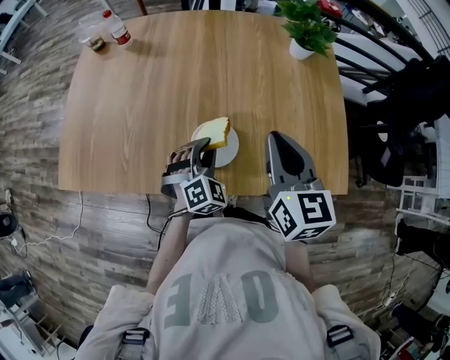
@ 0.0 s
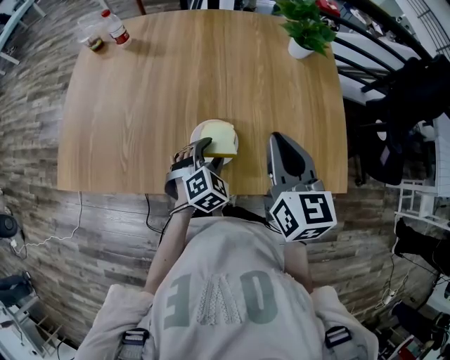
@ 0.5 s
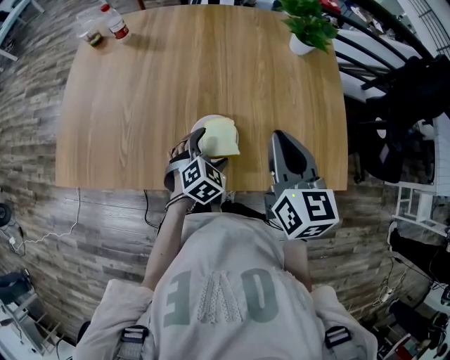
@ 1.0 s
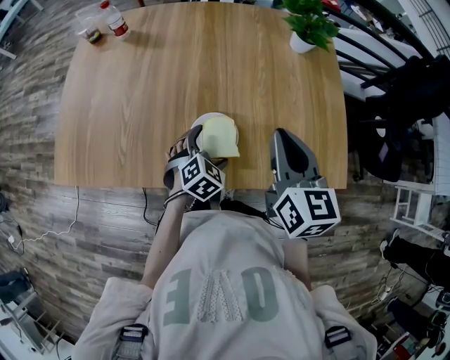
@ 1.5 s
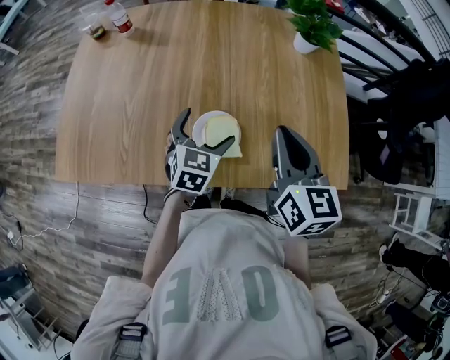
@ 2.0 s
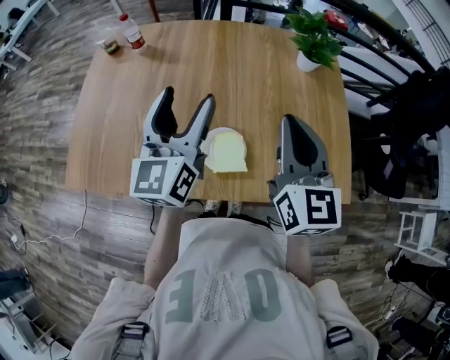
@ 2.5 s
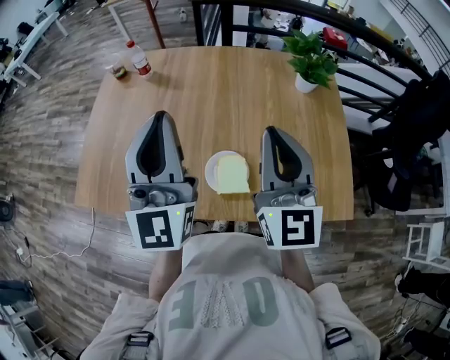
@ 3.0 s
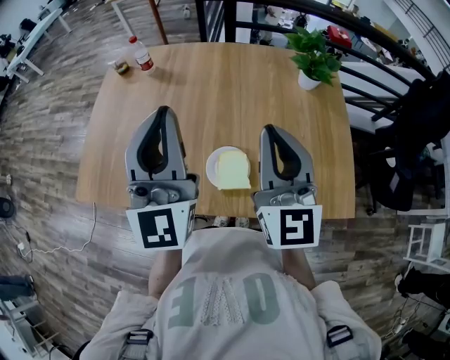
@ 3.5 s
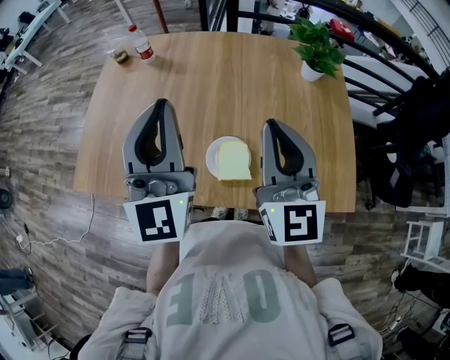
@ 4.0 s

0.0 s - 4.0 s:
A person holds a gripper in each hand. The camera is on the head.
0.0 s - 2.0 s: The left gripper swivels some 40 degrees, and opens up.
2.0 s - 4.0 s: The left gripper travels upward by approximately 30 cm, points its fingers about 50 degrees further upward, and closes up. Meanwhile the right gripper heads upward and to the left, covering approximately 10 cm, and changes its angle by some 30 degrees.

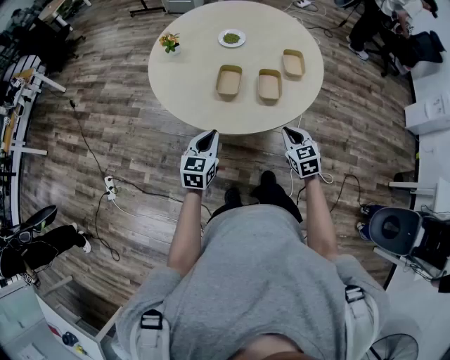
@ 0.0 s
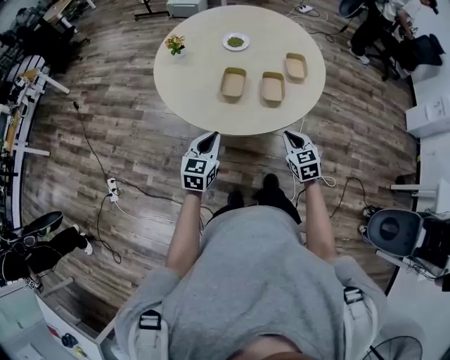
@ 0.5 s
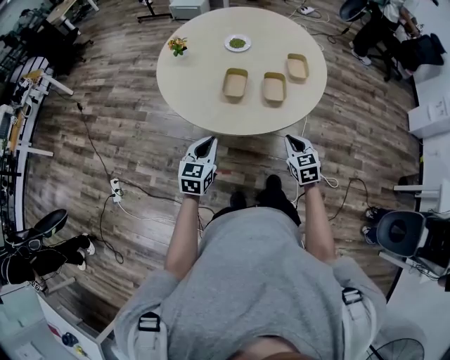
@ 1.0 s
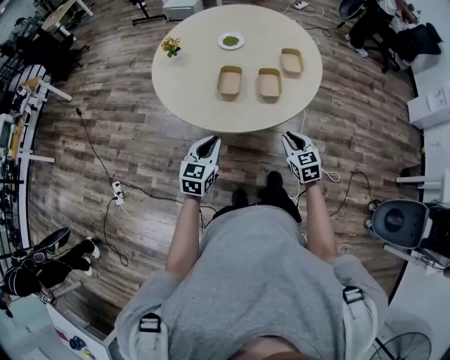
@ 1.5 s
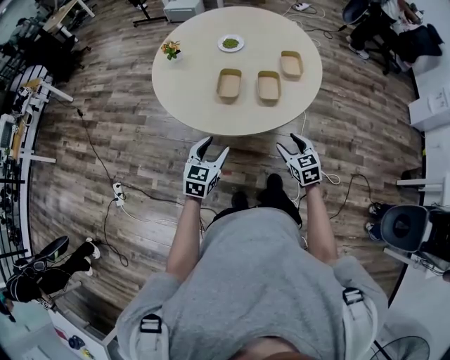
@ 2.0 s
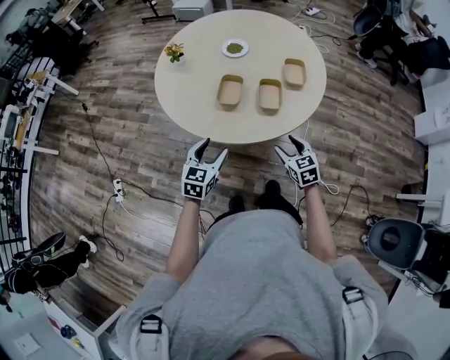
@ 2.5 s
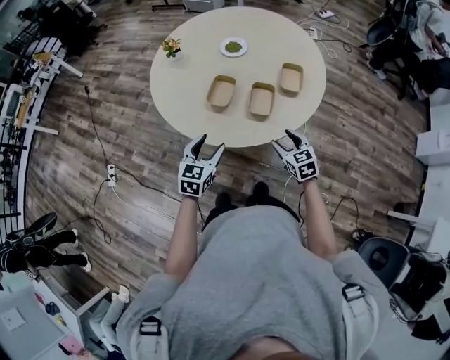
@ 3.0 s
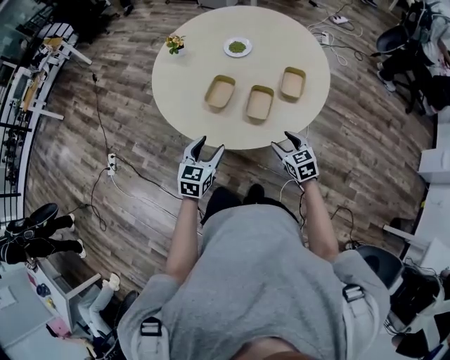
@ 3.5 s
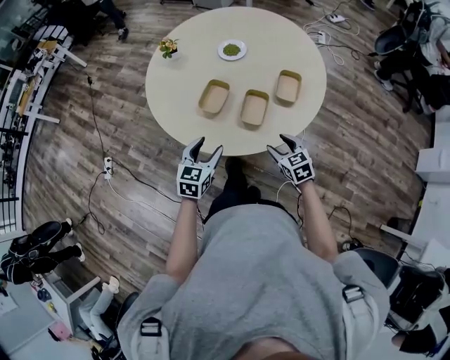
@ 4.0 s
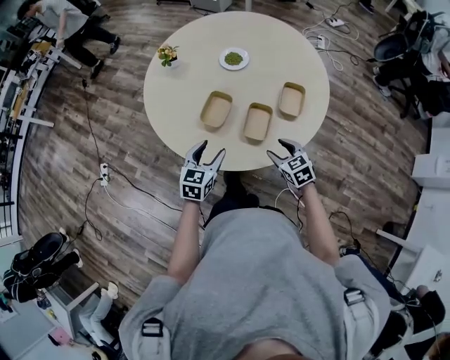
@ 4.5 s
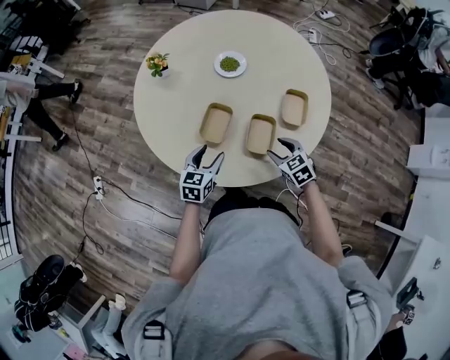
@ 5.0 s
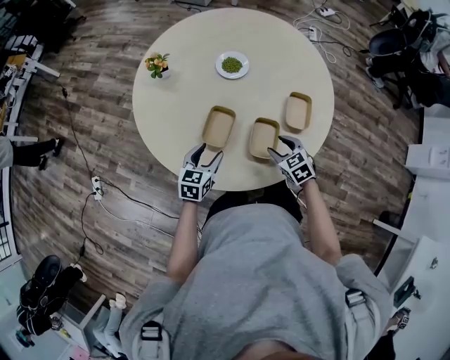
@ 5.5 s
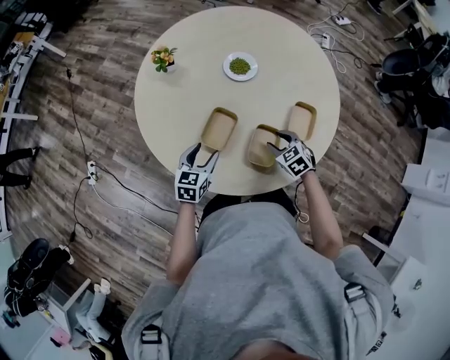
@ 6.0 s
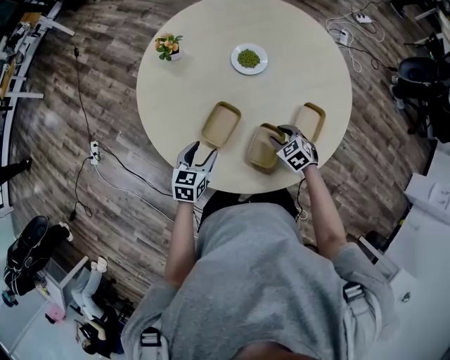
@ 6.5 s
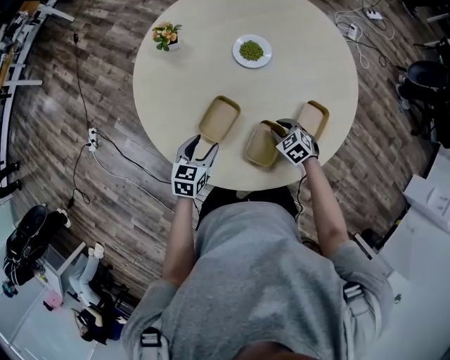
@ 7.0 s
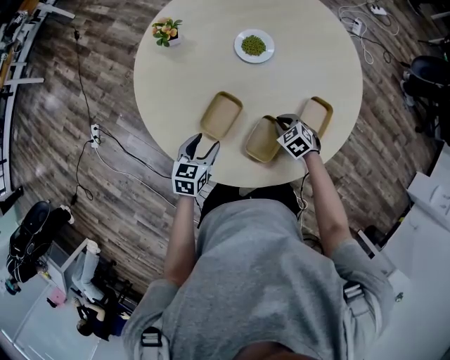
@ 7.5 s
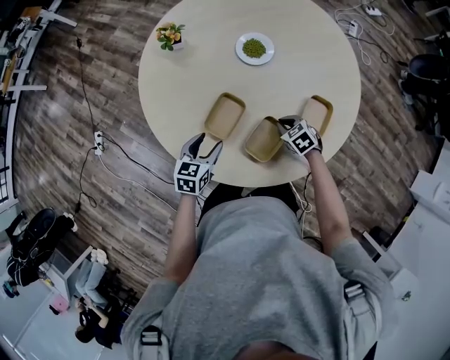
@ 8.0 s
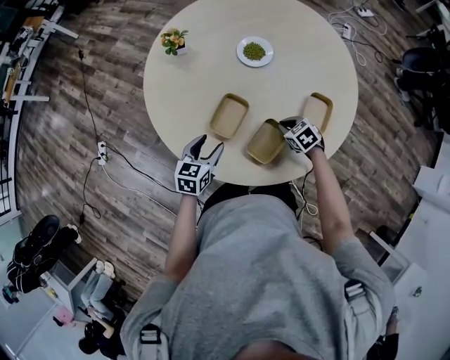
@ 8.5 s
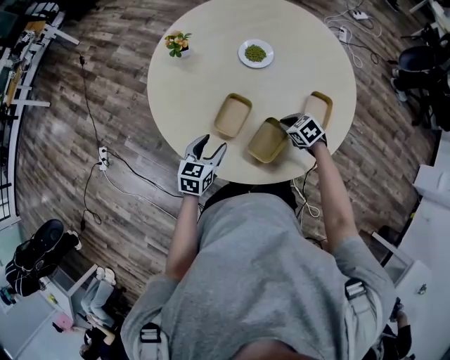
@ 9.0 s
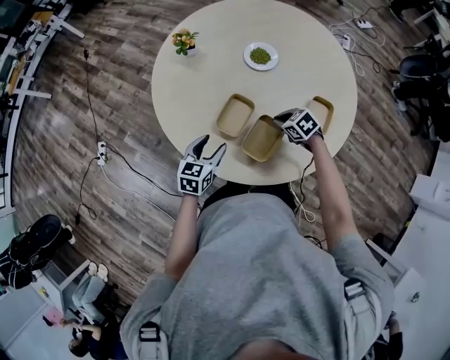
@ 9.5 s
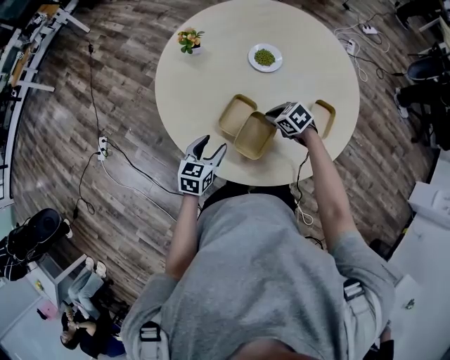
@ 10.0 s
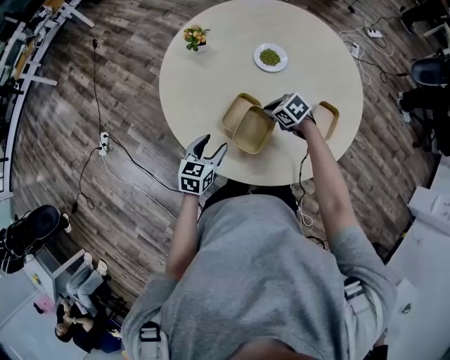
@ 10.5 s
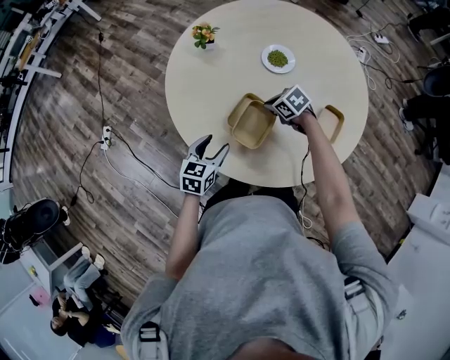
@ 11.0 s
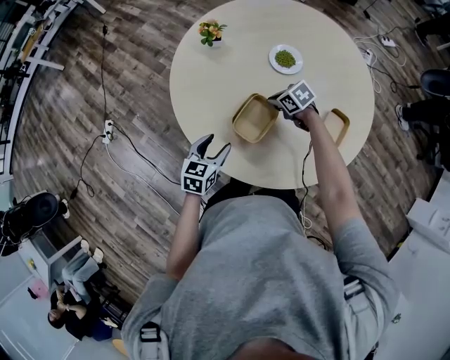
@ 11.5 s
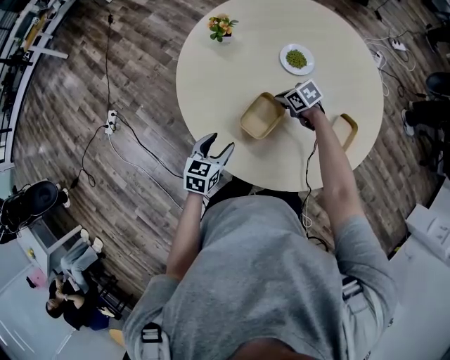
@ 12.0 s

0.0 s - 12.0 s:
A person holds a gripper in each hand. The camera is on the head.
0.0 s - 2.0 s: The left gripper shifts by roughly 5 cm, and opens up; the right gripper shifts about 5 cm backward, and opens.
2.0 s - 4.0 s: The right gripper goes about 20 cm forward and to the right, and swivels about 20 degrees. The left gripper shifts approximately 15 cm to the right and forward.
4.0 s - 6.0 s: The left gripper shifts roughly 25 cm forward and downward, while the right gripper heads forward, covering some 25 cm, and rotates roughly 20 degrees.
6.0 s - 8.0 s: The right gripper heads downward, covering about 5 cm, and closes up.
8.0 s - 10.0 s: The right gripper travels to the left and upward by about 10 cm. The left gripper ends up approximately 5 cm from where it was.
10.0 s - 12.0 s: The left gripper moves approximately 5 cm, while the right gripper is displaced forward by roughly 10 cm.

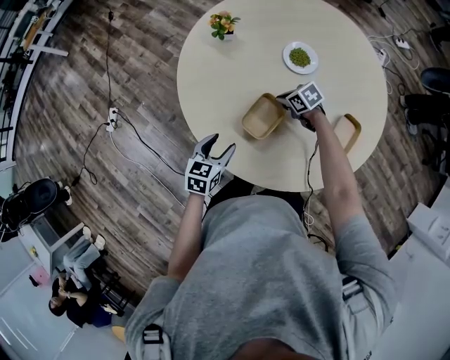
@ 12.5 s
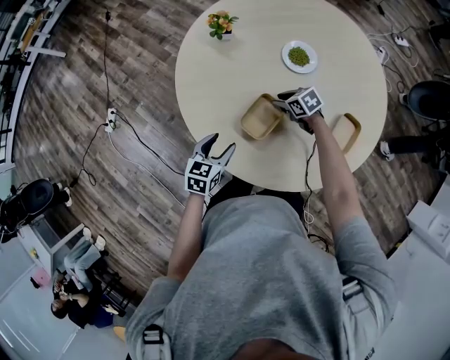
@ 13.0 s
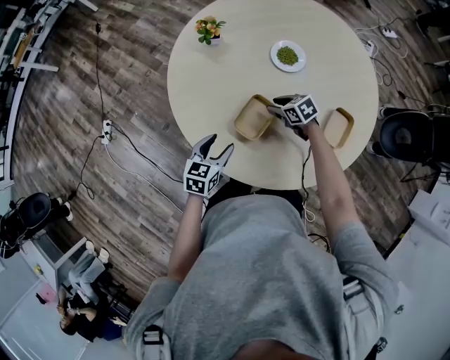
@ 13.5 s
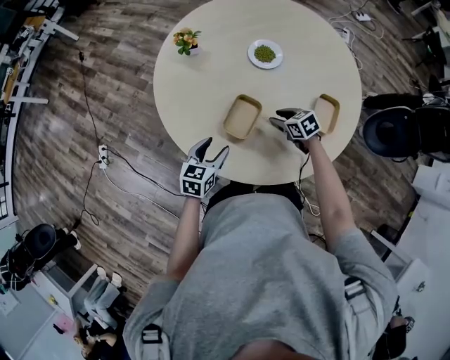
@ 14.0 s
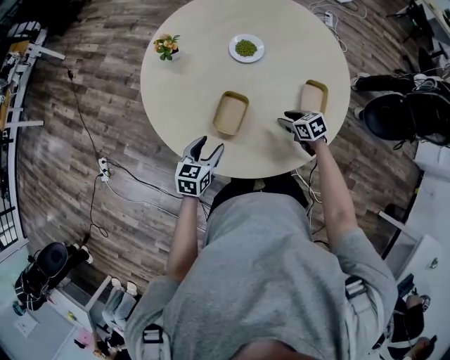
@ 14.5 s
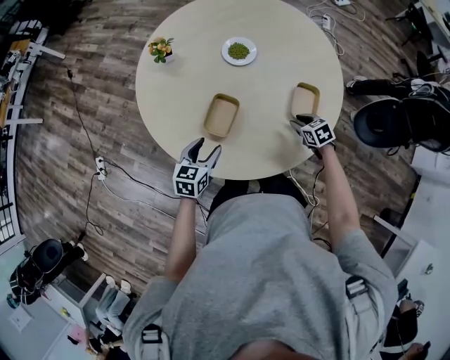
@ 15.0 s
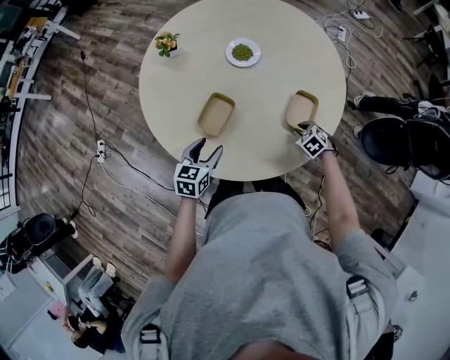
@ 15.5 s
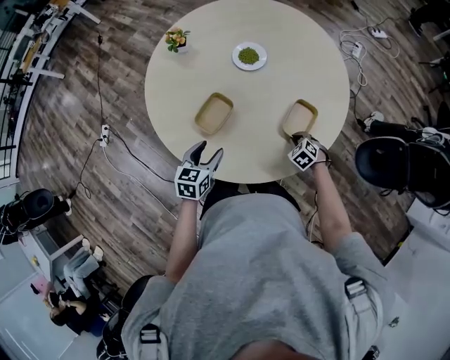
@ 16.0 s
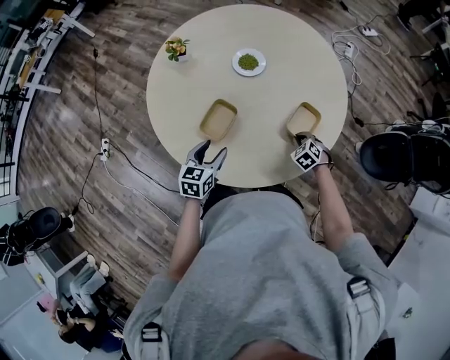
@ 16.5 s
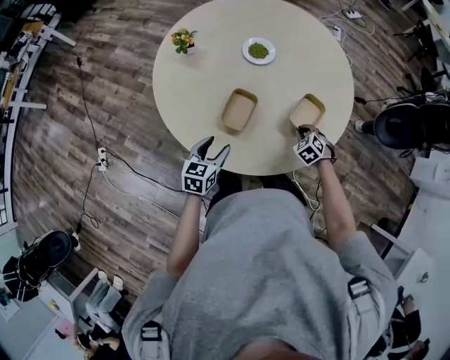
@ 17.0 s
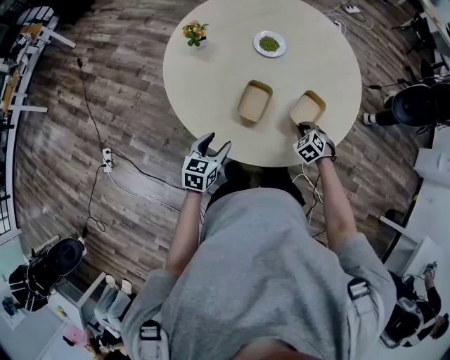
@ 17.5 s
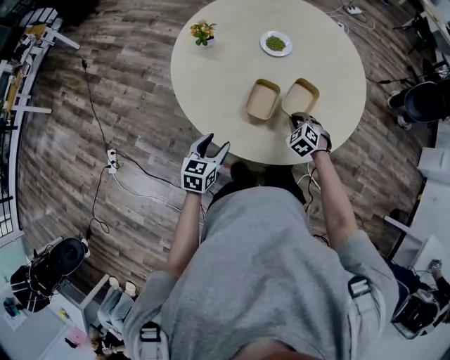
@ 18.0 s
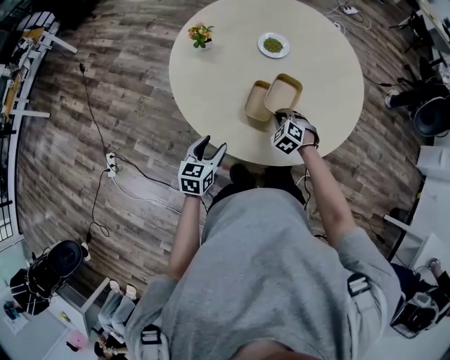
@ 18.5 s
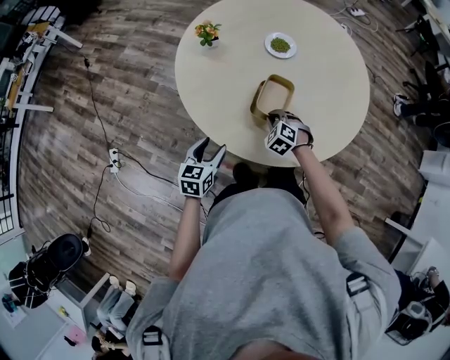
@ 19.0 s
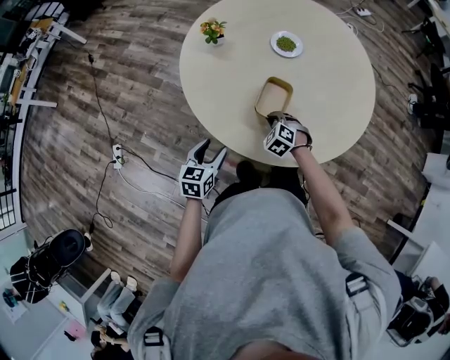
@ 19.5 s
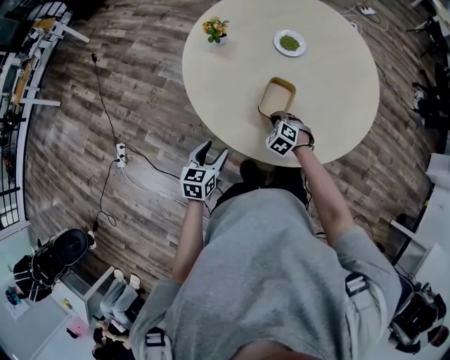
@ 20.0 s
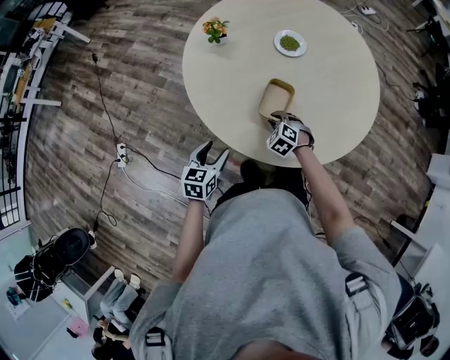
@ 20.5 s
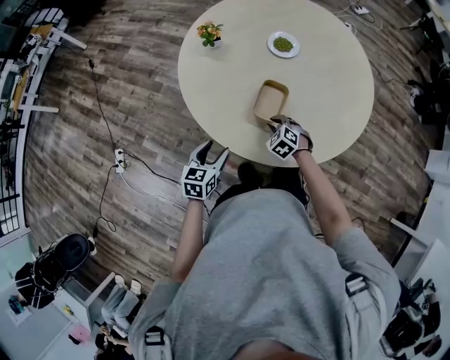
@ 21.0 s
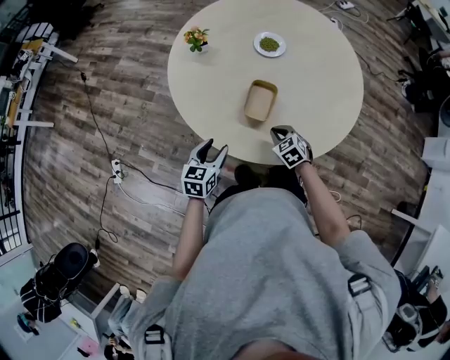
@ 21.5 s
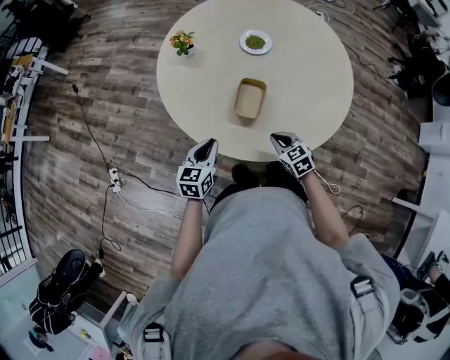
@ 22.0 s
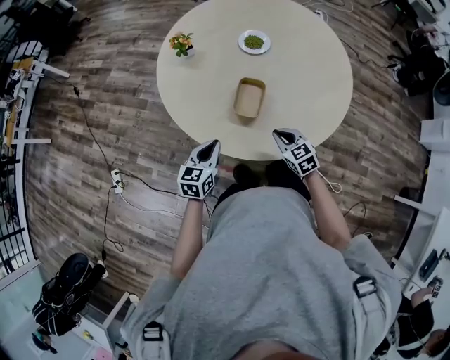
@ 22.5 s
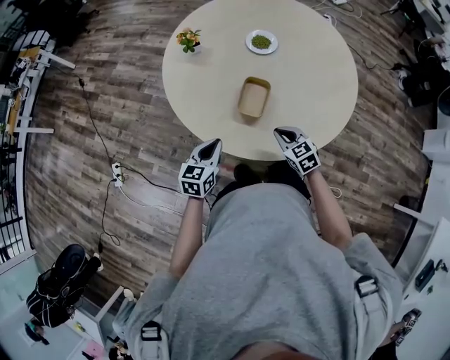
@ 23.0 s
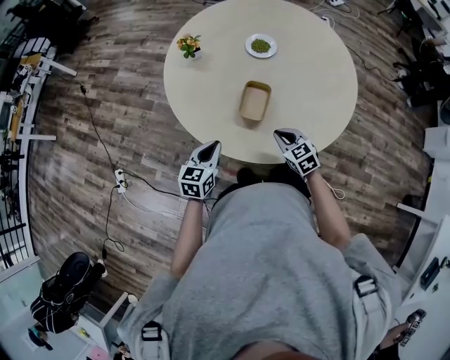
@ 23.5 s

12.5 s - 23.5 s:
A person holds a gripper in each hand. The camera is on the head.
12.5 s - 14.5 s: The right gripper ends up approximately 20 cm from where it was, turns by about 30 degrees, and opens up. Meanwhile the left gripper changes place by roughly 5 cm.
14.5 s - 16.0 s: The right gripper moves to the right, roughly 15 cm, twists some 40 degrees counterclockwise, seen from behind, and closes, while the left gripper moves to the right and backward, about 15 cm.
16.0 s - 18.0 s: The left gripper moves about 25 cm; the right gripper moves roughly 30 cm.
18.0 s - 20.0 s: The right gripper is displaced to the left by some 10 cm.
20.0 s - 21.5 s: The right gripper travels to the right by approximately 5 cm, and changes its angle by some 30 degrees.
21.5 s - 23.5 s: The right gripper goes roughly 5 cm upward. Meanwhile the left gripper closes up.
